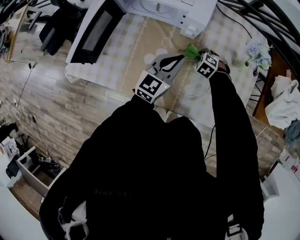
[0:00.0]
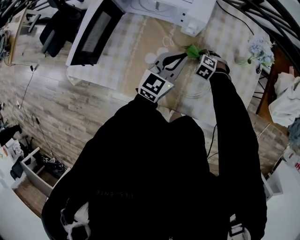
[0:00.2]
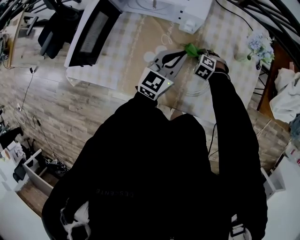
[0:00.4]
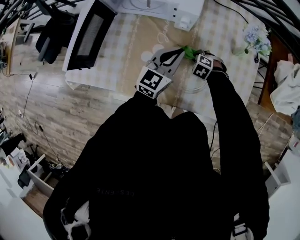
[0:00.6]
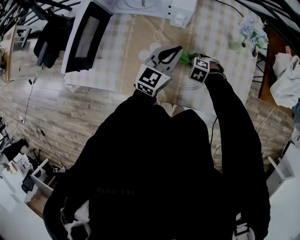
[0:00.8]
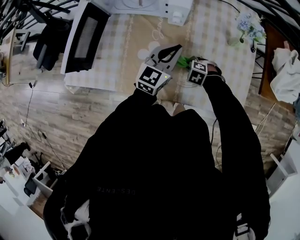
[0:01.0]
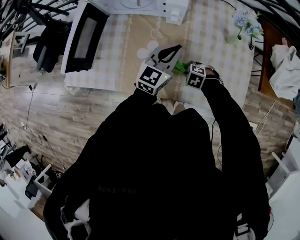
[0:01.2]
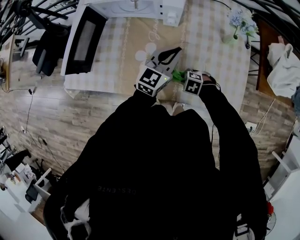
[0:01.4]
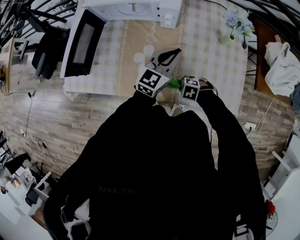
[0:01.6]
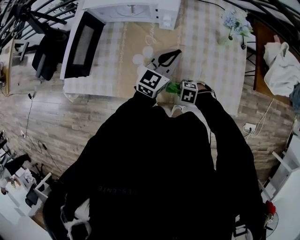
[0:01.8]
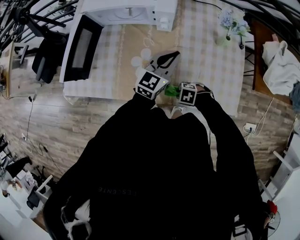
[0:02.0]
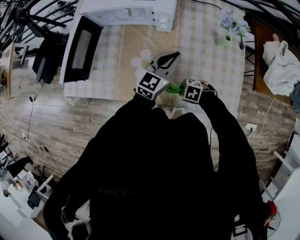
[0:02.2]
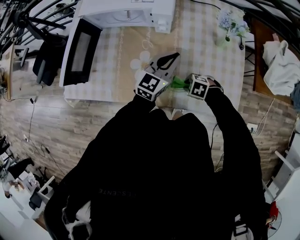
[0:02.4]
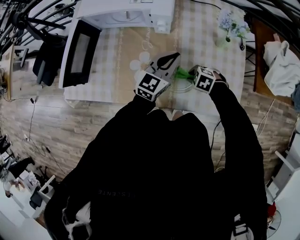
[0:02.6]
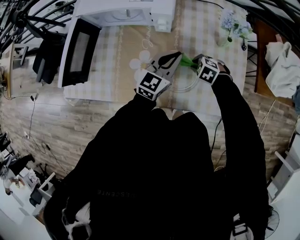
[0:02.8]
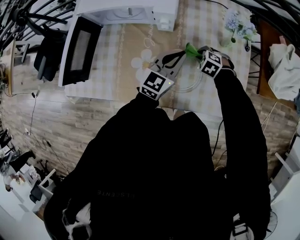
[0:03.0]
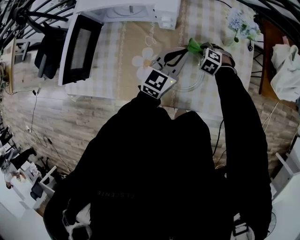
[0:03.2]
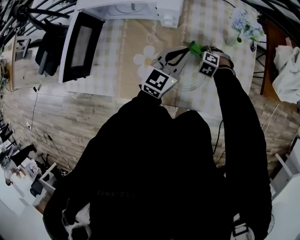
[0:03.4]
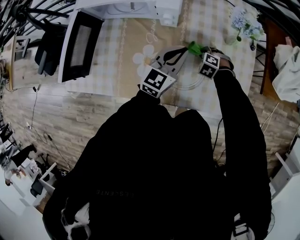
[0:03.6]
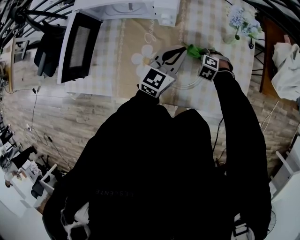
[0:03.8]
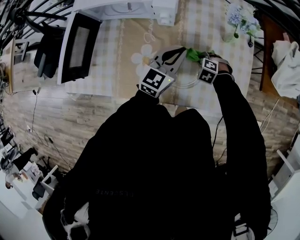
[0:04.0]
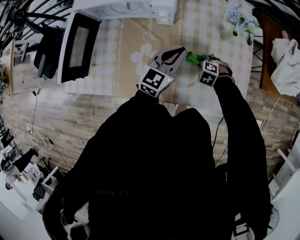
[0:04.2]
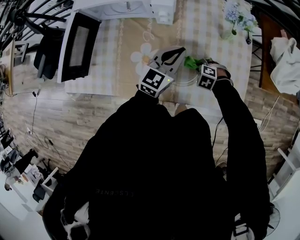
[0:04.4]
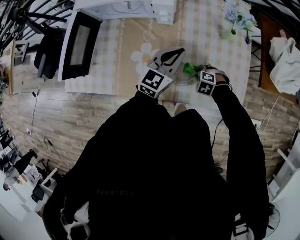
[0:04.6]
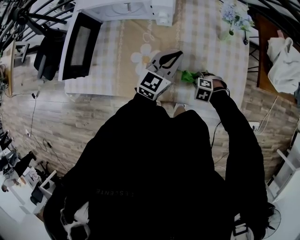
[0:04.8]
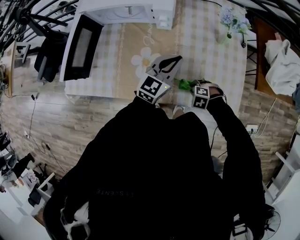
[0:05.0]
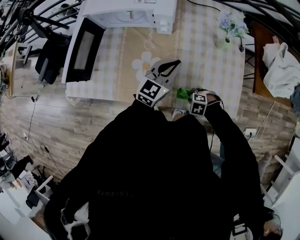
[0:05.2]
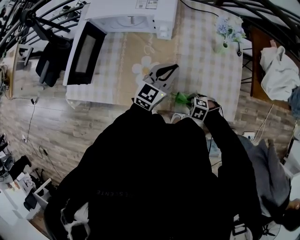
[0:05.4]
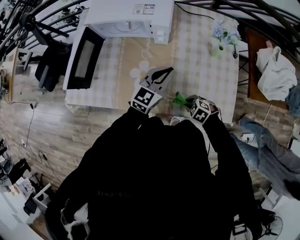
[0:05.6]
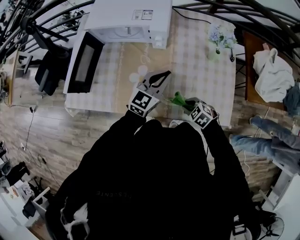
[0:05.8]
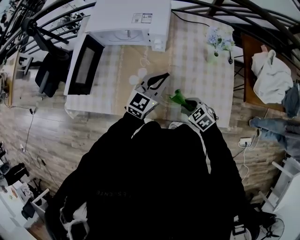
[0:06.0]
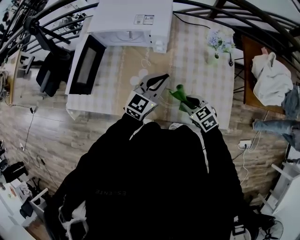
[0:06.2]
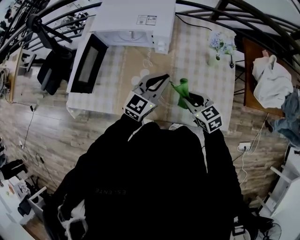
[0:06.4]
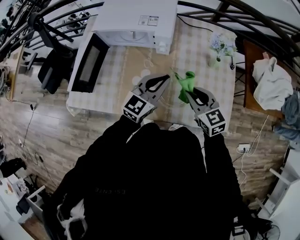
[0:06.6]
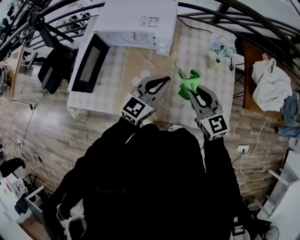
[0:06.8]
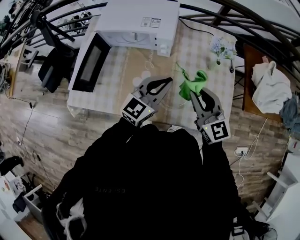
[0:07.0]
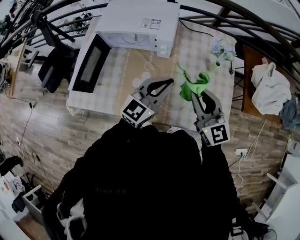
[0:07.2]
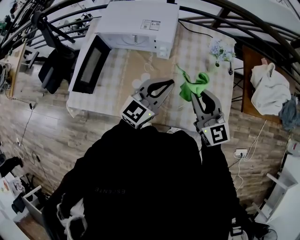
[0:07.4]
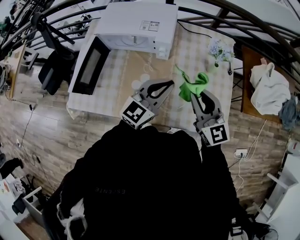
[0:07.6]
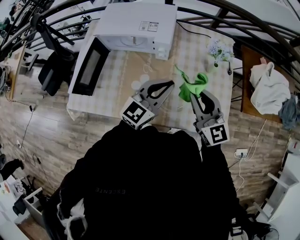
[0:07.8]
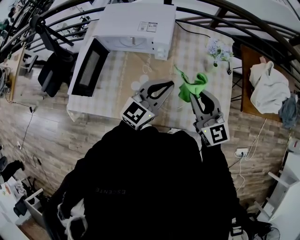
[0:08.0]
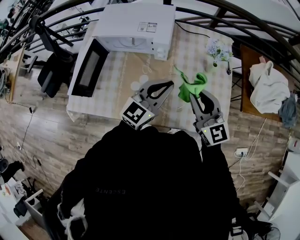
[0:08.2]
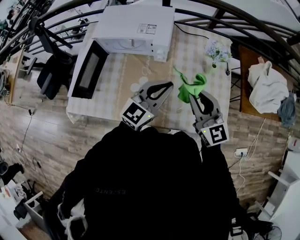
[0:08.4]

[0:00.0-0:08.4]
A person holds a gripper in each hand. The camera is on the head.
0:00.0 to 0:01.4: The right gripper moves some 20 cm, and swivels about 20 degrees.
0:01.4 to 0:02.8: The right gripper moves approximately 15 cm.
0:02.8 to 0:04.2: The right gripper shifts about 5 cm downward.
0:04.2 to 0:05.6: The right gripper shifts by roughly 15 cm. Meanwhile the left gripper ends up approximately 5 cm from where it was.
0:05.6 to 0:07.0: The left gripper is displaced upward by approximately 10 cm. The right gripper shifts approximately 30 cm upward, and angles its fingers upward, by approximately 60 degrees.
0:07.0 to 0:08.4: The grippers make only small movements.

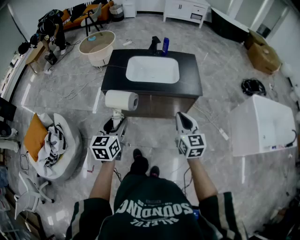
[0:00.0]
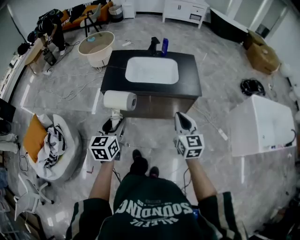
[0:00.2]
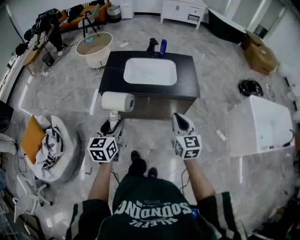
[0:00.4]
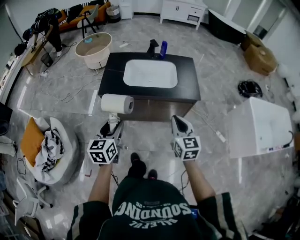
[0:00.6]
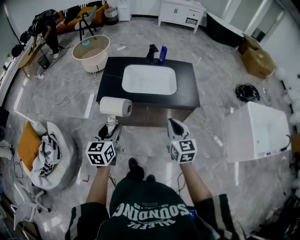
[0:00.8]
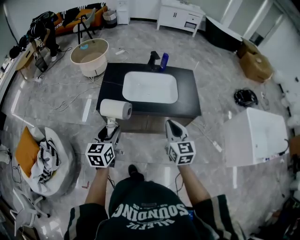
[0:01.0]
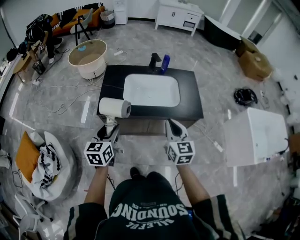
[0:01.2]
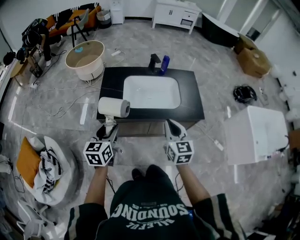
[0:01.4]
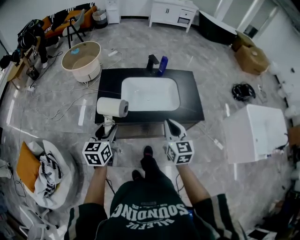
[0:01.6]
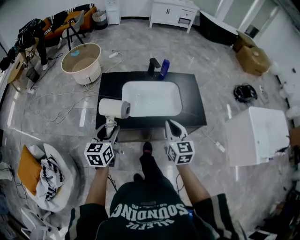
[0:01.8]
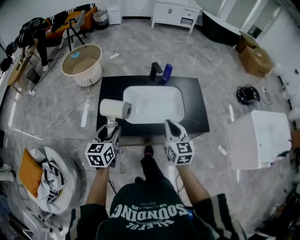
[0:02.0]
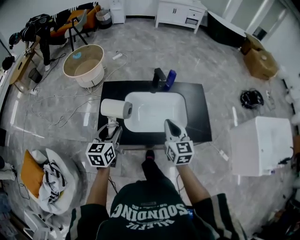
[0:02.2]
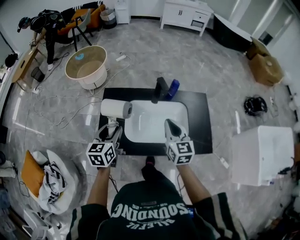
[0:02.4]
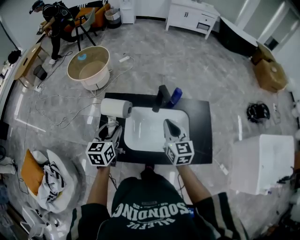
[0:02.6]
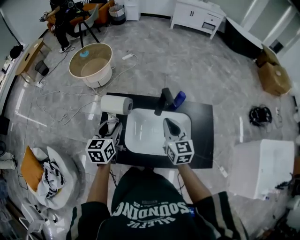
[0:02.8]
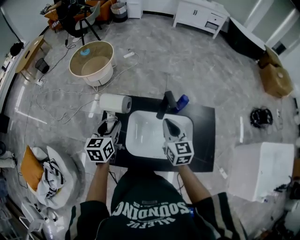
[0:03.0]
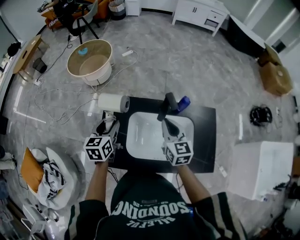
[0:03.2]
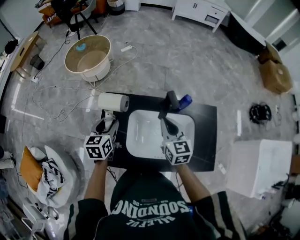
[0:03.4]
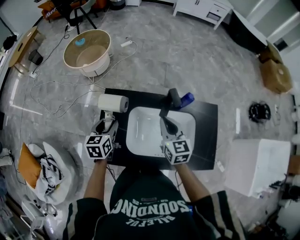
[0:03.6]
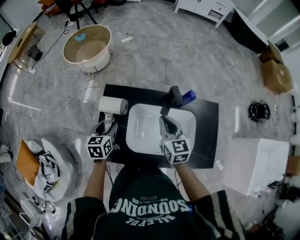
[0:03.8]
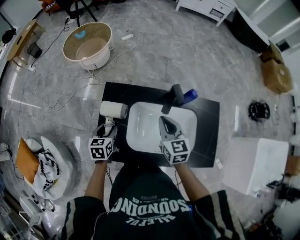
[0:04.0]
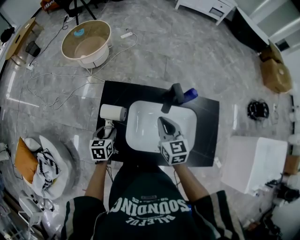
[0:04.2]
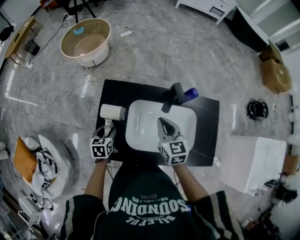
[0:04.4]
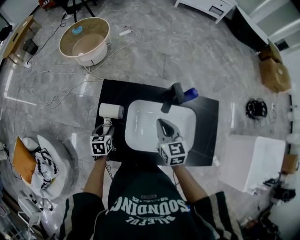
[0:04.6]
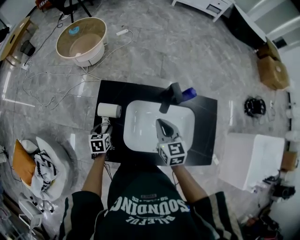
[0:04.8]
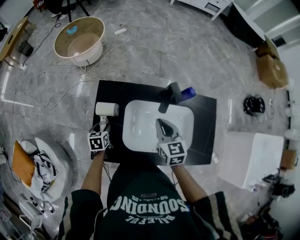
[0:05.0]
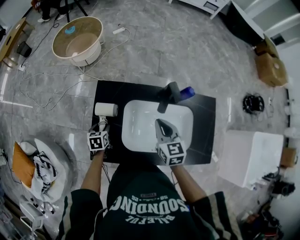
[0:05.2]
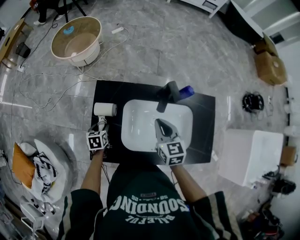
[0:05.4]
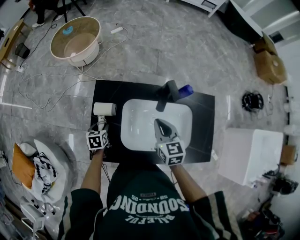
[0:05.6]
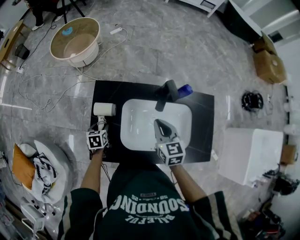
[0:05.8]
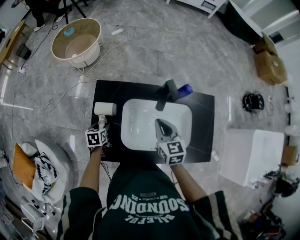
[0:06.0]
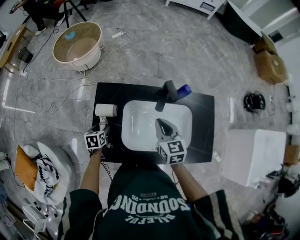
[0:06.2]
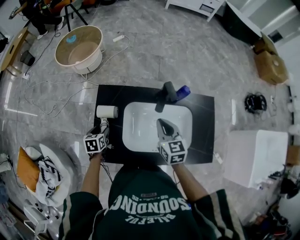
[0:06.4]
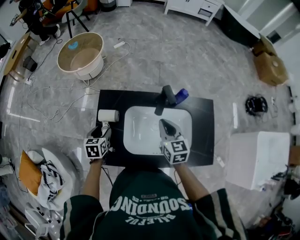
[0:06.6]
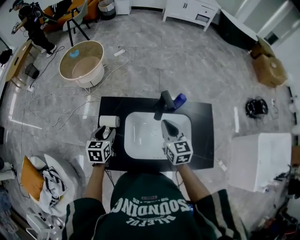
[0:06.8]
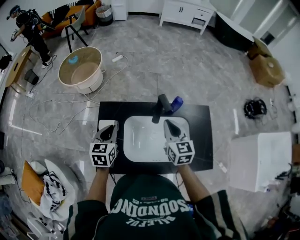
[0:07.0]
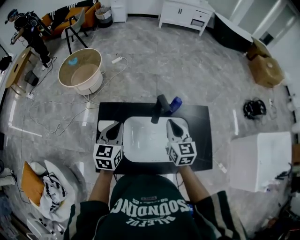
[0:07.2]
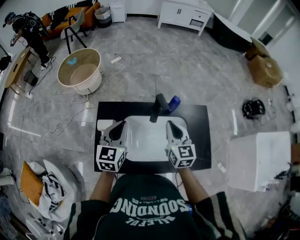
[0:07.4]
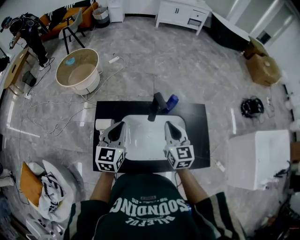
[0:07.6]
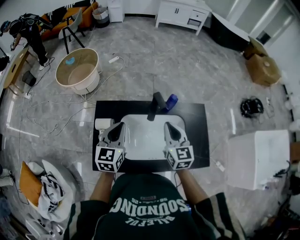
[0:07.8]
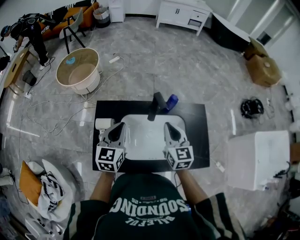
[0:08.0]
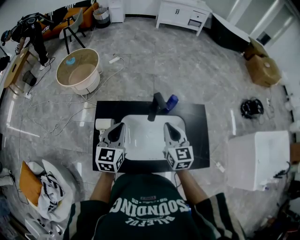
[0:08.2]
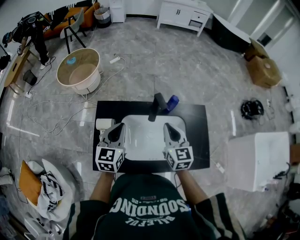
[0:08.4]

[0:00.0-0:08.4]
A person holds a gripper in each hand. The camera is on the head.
0:00.0 to 0:01.4: Both grippers travel together forward and to the left, roughly 20 cm.
0:01.4 to 0:02.8: The two grippers go about 35 cm forward.
0:02.8 to 0:04.2: The right gripper shifts some 10 cm downward and to the left; the left gripper shifts roughly 20 cm downward, and changes its angle by roughly 20 degrees.
0:04.2 to 0:05.6: The left gripper moves downward, some 10 cm.
0:05.6 to 0:07.0: The left gripper goes roughly 20 cm upward, rotates about 30 degrees, and closes its fingers, while the right gripper shifts about 10 cm upward and to the right.
0:07.0 to 0:08.4: The left gripper moves to the right and upward, roughly 10 cm.

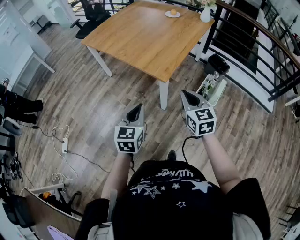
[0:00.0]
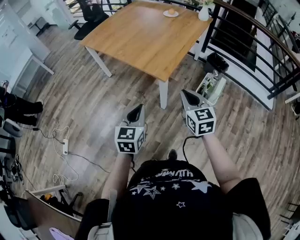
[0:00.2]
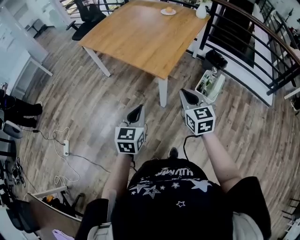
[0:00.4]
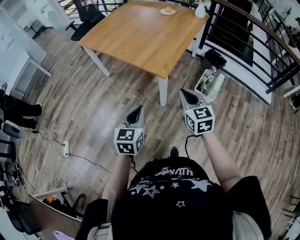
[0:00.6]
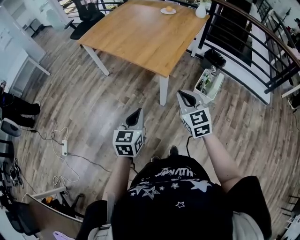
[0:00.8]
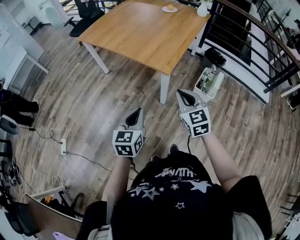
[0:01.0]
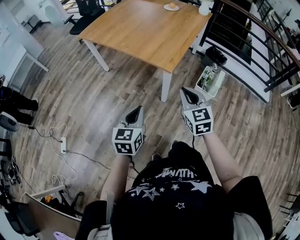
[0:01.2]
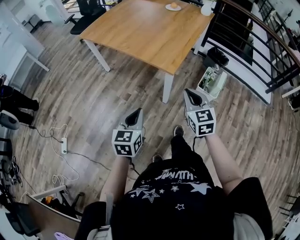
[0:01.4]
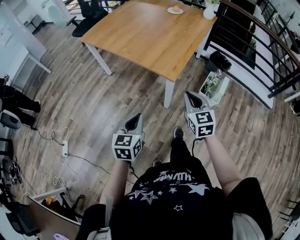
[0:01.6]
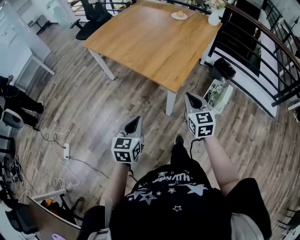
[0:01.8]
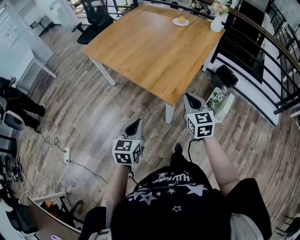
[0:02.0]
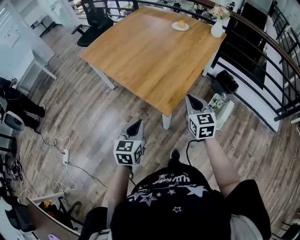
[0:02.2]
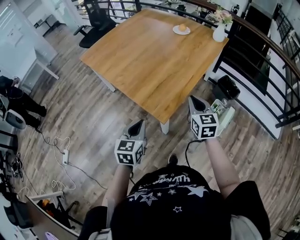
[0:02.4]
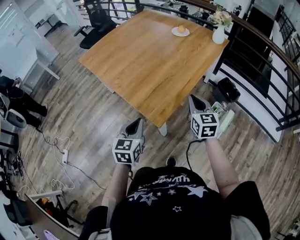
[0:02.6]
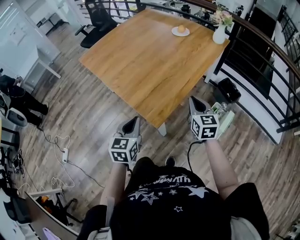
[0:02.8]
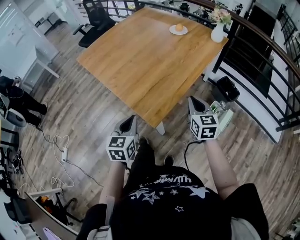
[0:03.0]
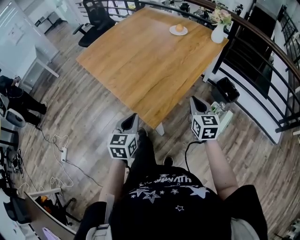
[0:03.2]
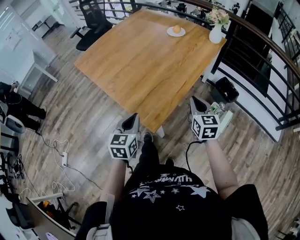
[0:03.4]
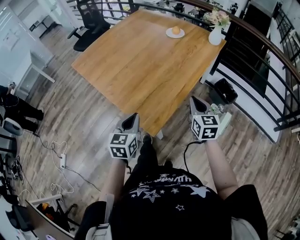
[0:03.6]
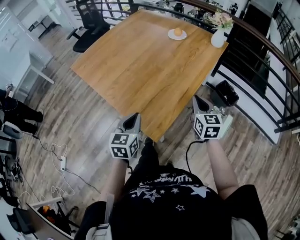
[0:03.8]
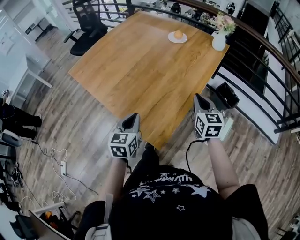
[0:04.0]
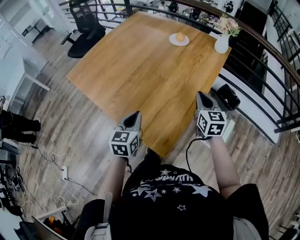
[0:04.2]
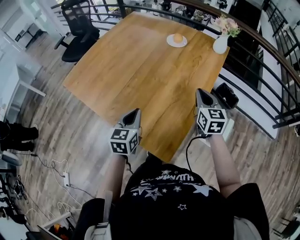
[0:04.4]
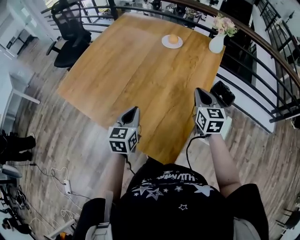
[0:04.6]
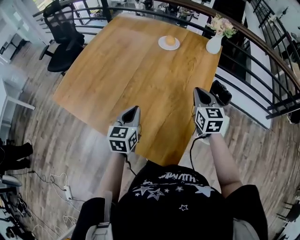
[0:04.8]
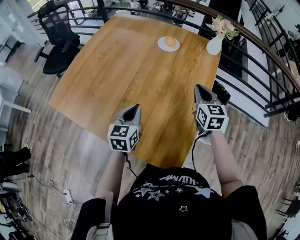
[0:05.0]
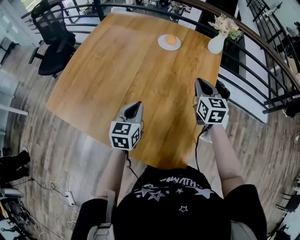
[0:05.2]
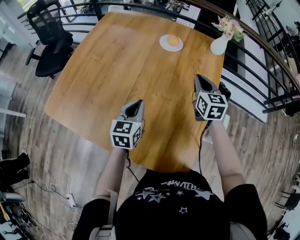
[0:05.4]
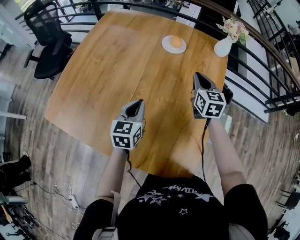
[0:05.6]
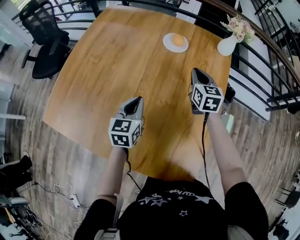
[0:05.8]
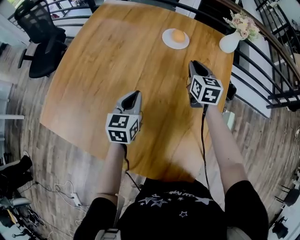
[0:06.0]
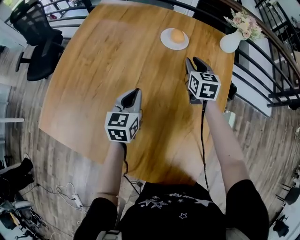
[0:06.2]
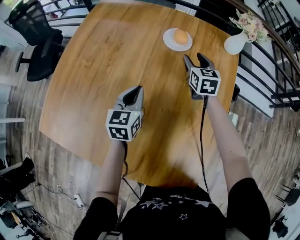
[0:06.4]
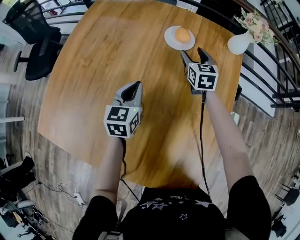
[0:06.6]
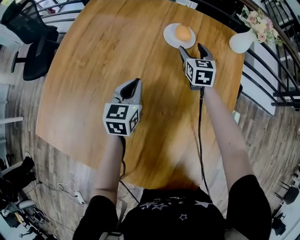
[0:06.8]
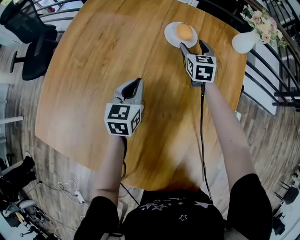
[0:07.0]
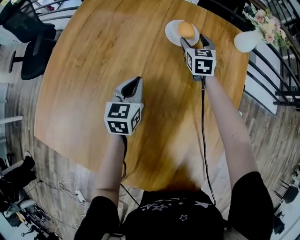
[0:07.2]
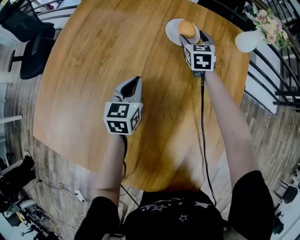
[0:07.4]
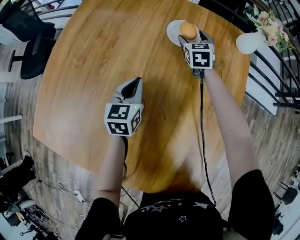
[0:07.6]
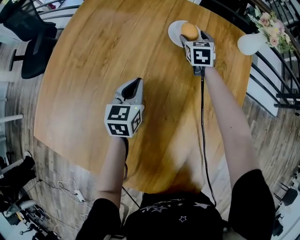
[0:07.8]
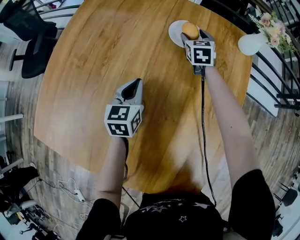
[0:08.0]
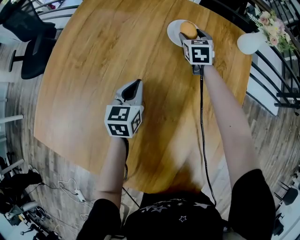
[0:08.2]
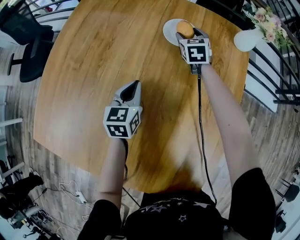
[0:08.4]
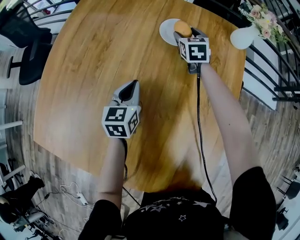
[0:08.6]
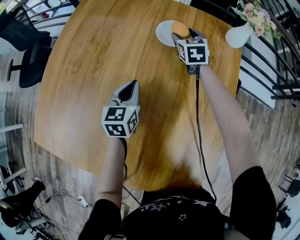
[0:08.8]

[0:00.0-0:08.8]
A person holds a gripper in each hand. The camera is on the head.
0:00.0 to 0:01.4: The grippers both shift to the left by roughly 5 cm.
0:01.4 to 0:03.0: Both grippers move forward and to the right, approximately 30 cm.
0:03.0 to 0:04.4: The two grippers go roughly 20 cm forward.
0:04.4 to 0:05.8: The left gripper travels forward by roughly 25 cm. Meanwhile the right gripper moves forward and to the left, some 25 cm.
0:05.8 to 0:07.4: The grippers both shift forward and downward by roughly 20 cm. The right gripper opens up.
0:07.4 to 0:08.8: The grippers make only small movements.
